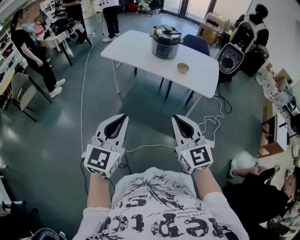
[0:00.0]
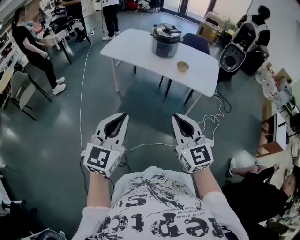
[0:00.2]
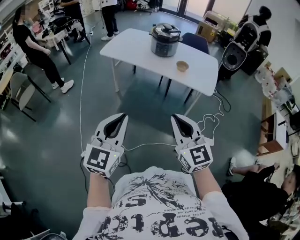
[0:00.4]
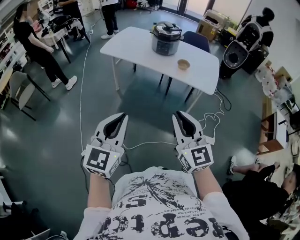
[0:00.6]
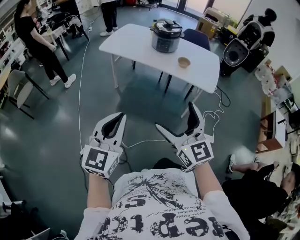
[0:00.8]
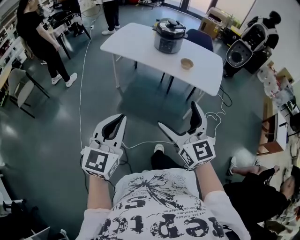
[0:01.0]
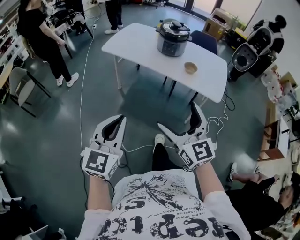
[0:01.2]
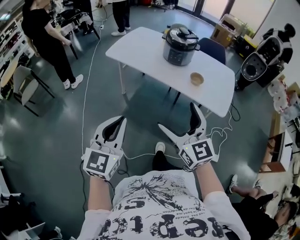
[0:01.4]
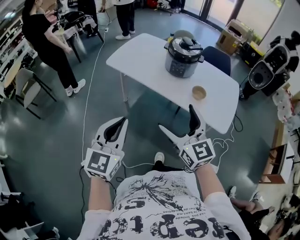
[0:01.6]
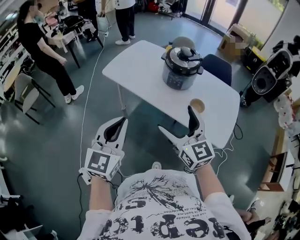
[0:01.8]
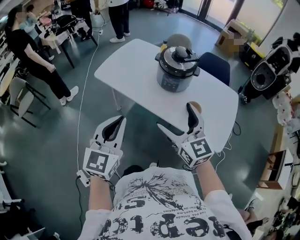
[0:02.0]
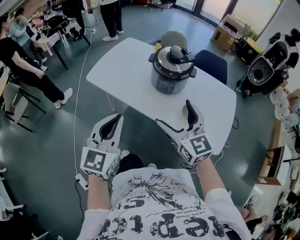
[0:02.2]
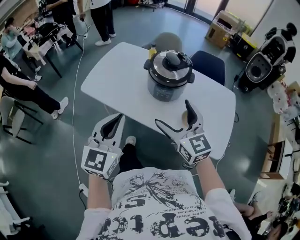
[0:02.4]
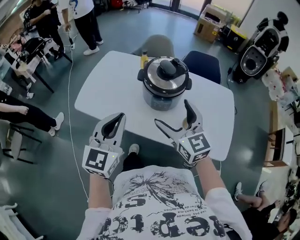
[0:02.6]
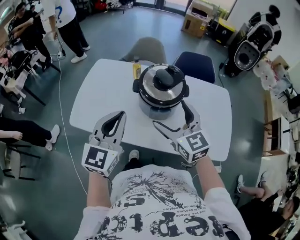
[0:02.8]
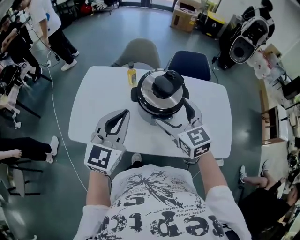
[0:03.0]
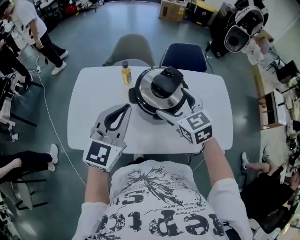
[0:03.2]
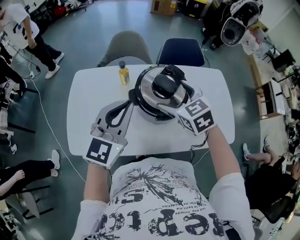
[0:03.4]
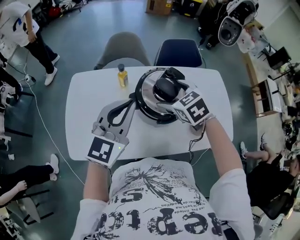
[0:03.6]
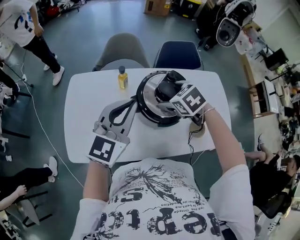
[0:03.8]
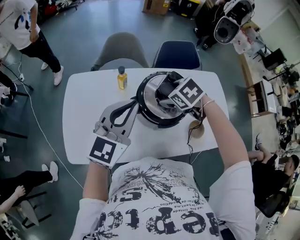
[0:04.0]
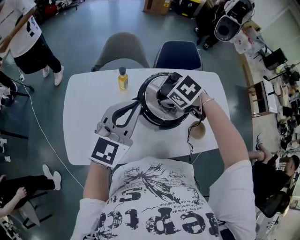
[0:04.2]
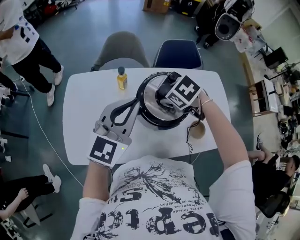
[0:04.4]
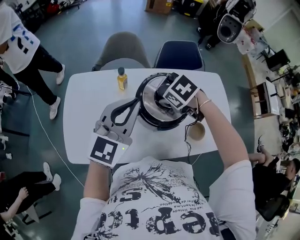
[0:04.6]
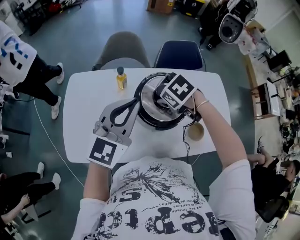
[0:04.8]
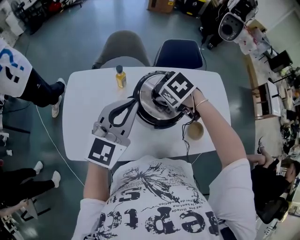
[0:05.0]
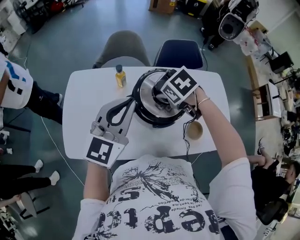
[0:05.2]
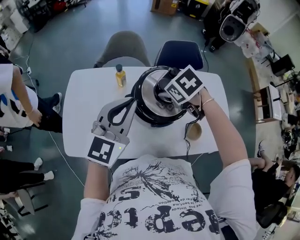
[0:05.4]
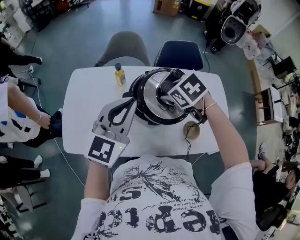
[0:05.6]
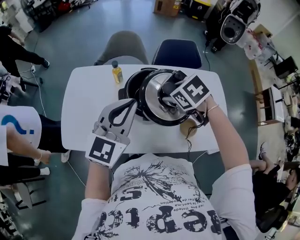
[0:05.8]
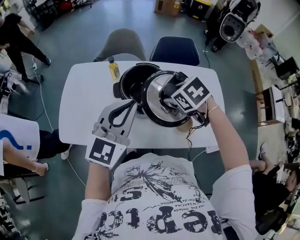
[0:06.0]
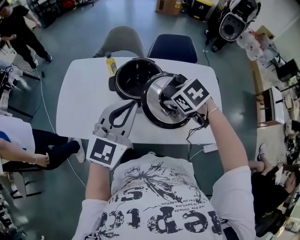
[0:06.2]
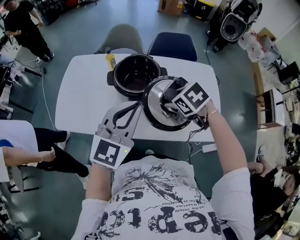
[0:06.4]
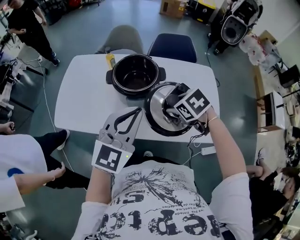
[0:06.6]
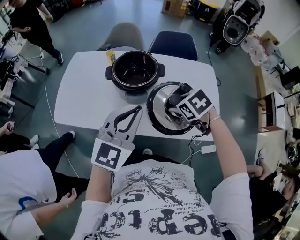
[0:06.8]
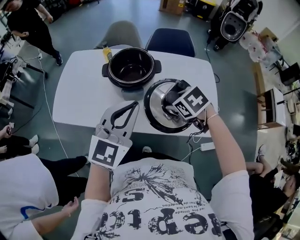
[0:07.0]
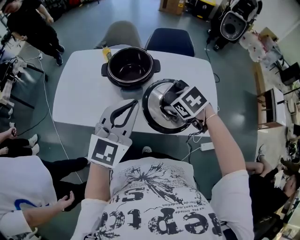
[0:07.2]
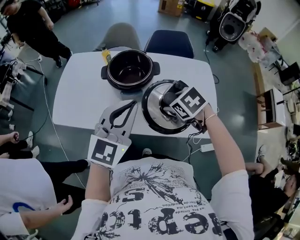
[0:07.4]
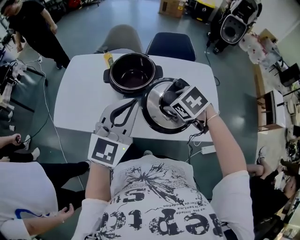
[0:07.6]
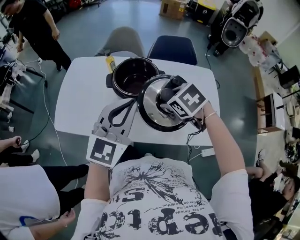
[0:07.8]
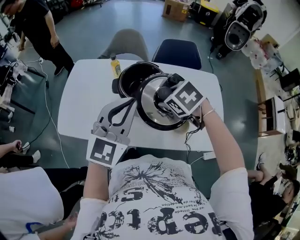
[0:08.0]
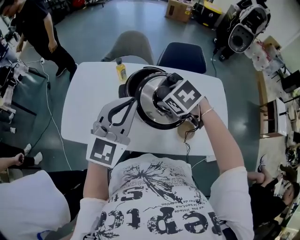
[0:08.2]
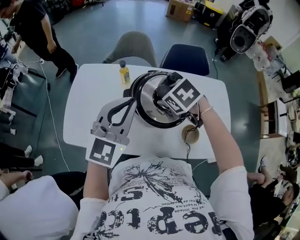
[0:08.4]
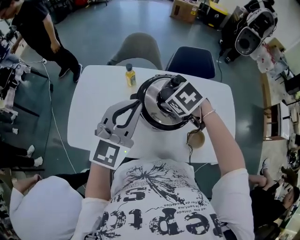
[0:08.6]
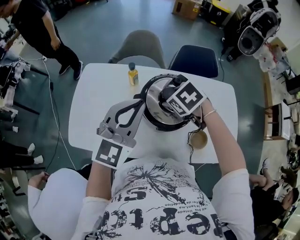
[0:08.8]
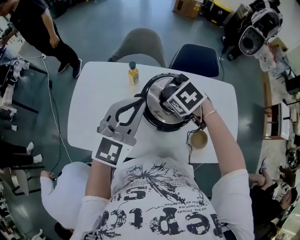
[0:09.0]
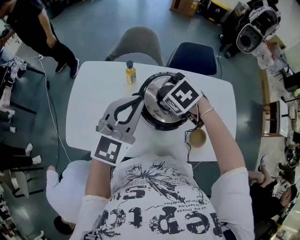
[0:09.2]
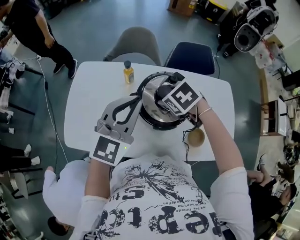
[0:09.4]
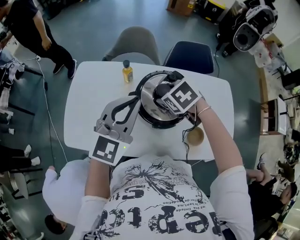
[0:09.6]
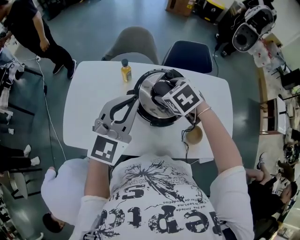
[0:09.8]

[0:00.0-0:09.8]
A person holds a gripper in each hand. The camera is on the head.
0:00.0 to 0:01.4: Both grippers move forward, some 20 cm. The right gripper opens.
0:01.4 to 0:02.8: Both grippers are carried forward, about 60 cm.
0:02.8 to 0:04.2: The left gripper is displaced forward by some 20 cm, and changes its angle by some 30 degrees. The right gripper heads forward and downward, covering roughly 25 cm, and tips its fingers downward by approximately 60 degrees.
0:04.2 to 0:05.6: The right gripper ends up roughly 5 cm from where it was. The left gripper moves approximately 5 cm.
0:05.6 to 0:07.0: Both grippers travel together backward and to the right, some 25 cm.
0:07.0 to 0:08.4: Both grippers travel together forward and to the left, about 25 cm.
0:08.4 to 0:09.8: The right gripper moves roughly 5 cm.

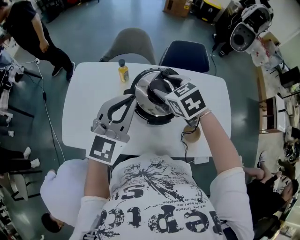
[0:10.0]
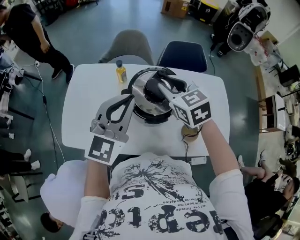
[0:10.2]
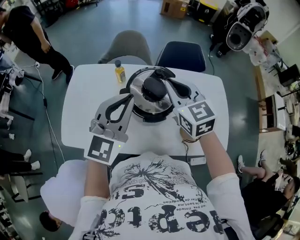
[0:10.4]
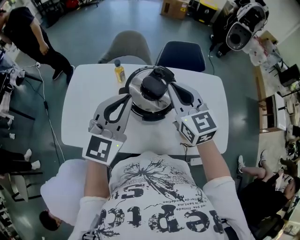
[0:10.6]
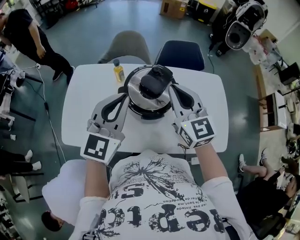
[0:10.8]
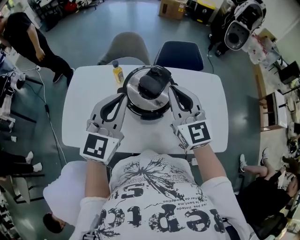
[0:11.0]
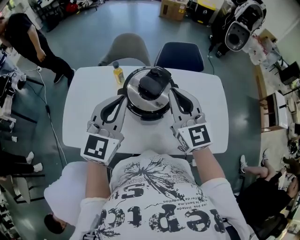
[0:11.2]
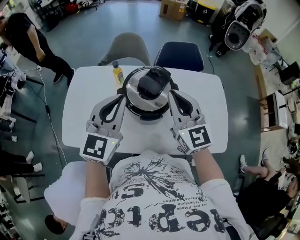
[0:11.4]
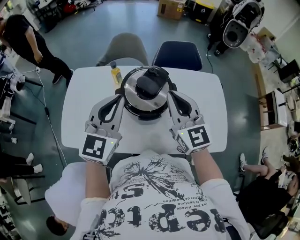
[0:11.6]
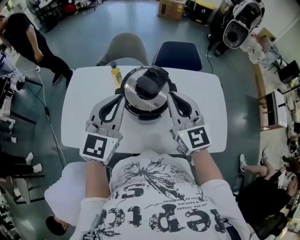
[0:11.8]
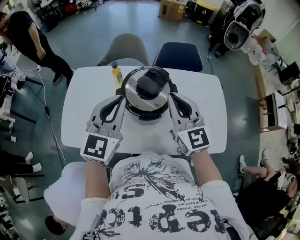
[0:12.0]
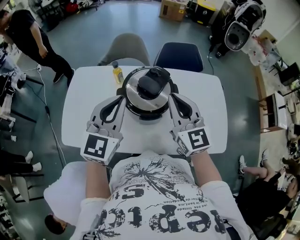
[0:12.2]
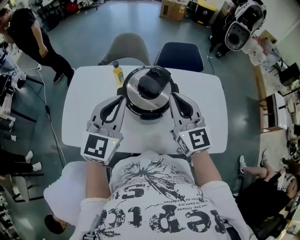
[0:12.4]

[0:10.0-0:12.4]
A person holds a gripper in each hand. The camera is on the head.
0:10.0 to 0:11.2: The right gripper heads upward, backward and to the right, covering about 15 cm, angles its fingers upward, by some 50 degrees, and closes.
0:11.2 to 0:12.4: There are only small adjustments of the grippers.

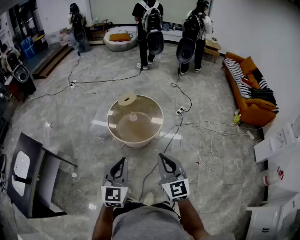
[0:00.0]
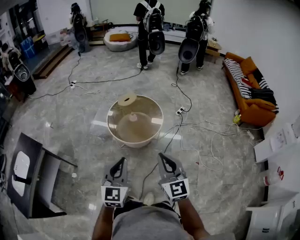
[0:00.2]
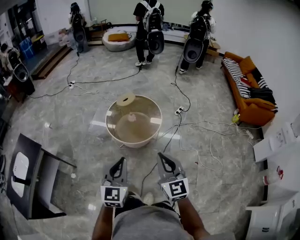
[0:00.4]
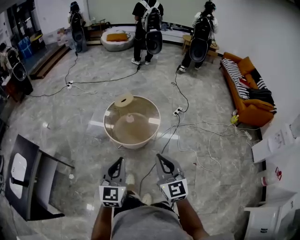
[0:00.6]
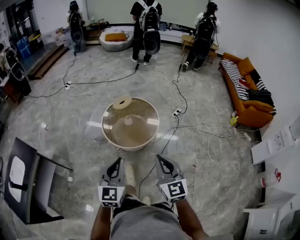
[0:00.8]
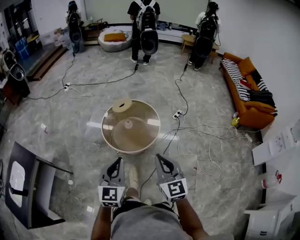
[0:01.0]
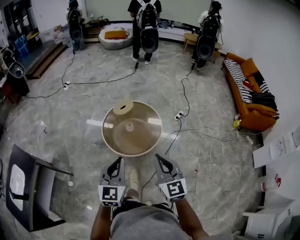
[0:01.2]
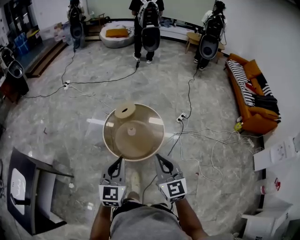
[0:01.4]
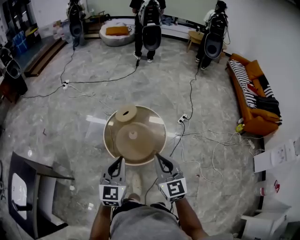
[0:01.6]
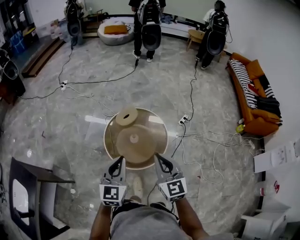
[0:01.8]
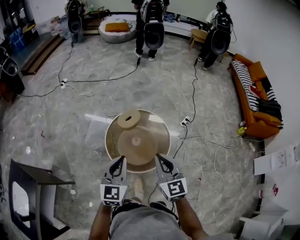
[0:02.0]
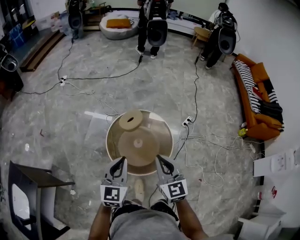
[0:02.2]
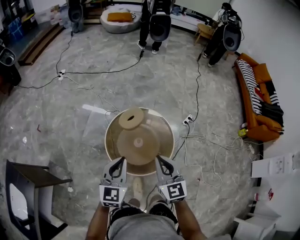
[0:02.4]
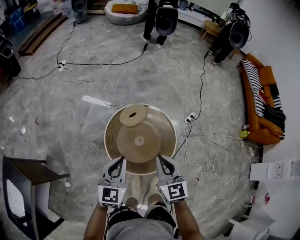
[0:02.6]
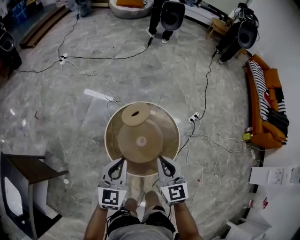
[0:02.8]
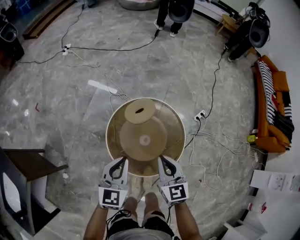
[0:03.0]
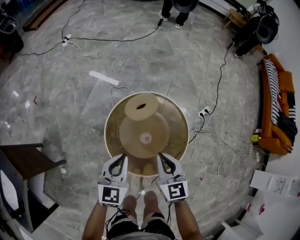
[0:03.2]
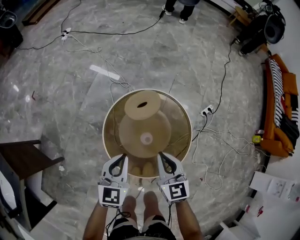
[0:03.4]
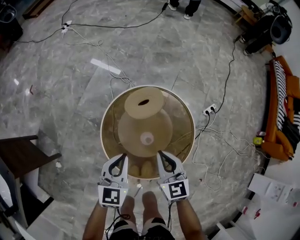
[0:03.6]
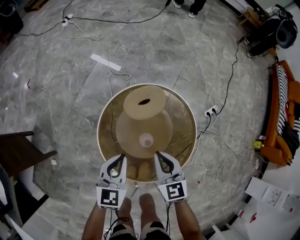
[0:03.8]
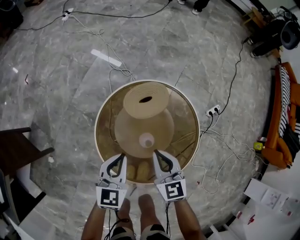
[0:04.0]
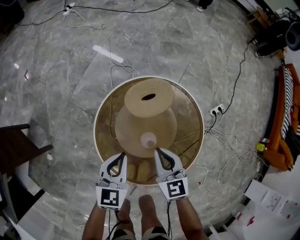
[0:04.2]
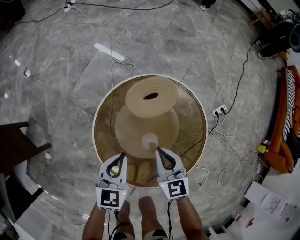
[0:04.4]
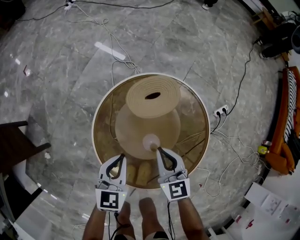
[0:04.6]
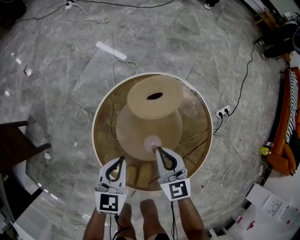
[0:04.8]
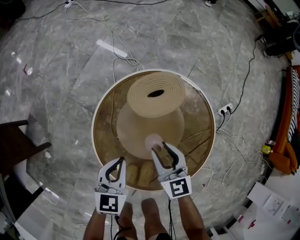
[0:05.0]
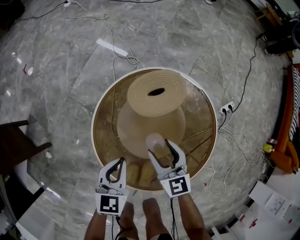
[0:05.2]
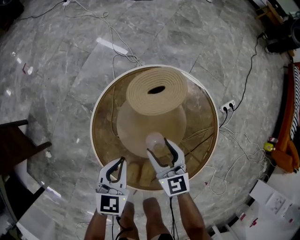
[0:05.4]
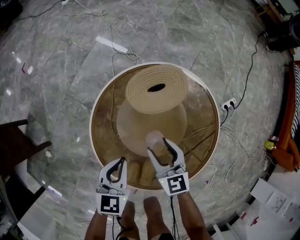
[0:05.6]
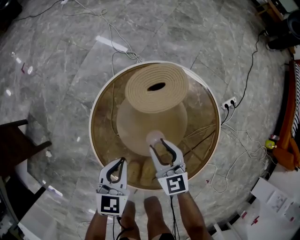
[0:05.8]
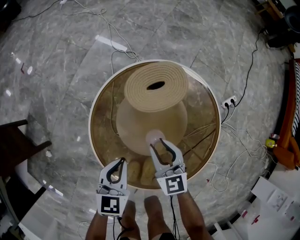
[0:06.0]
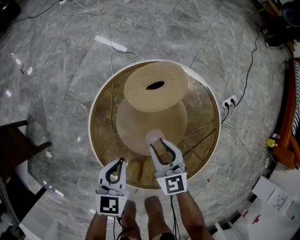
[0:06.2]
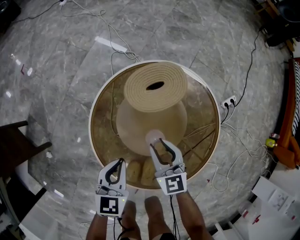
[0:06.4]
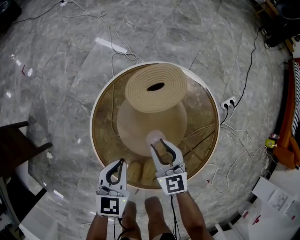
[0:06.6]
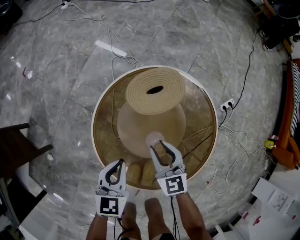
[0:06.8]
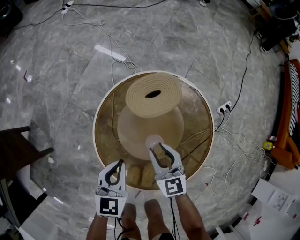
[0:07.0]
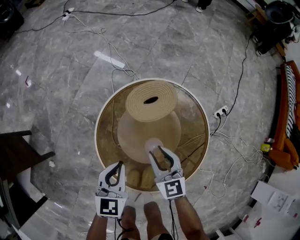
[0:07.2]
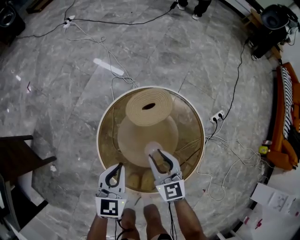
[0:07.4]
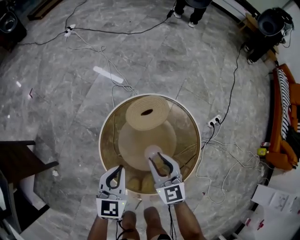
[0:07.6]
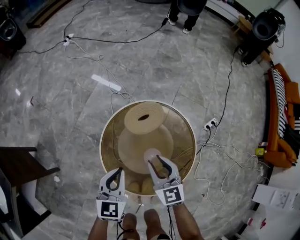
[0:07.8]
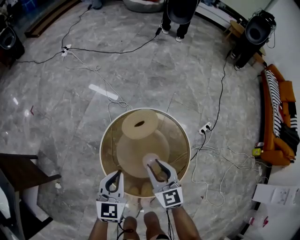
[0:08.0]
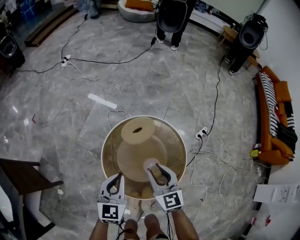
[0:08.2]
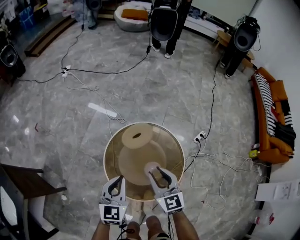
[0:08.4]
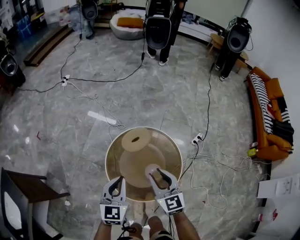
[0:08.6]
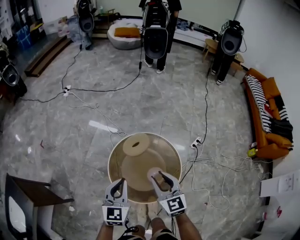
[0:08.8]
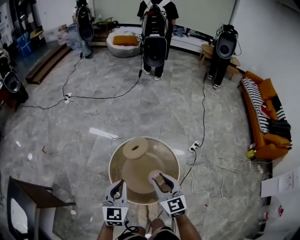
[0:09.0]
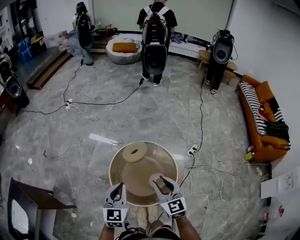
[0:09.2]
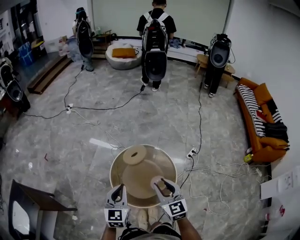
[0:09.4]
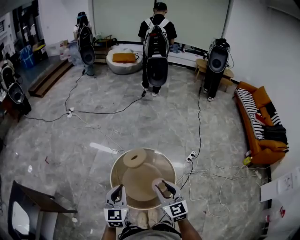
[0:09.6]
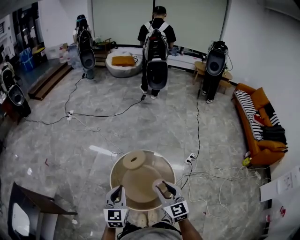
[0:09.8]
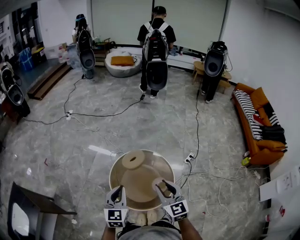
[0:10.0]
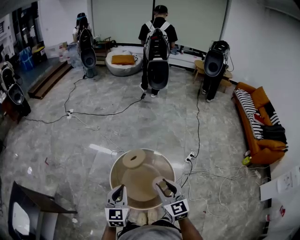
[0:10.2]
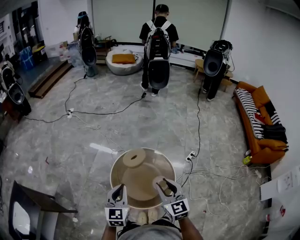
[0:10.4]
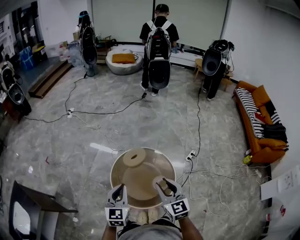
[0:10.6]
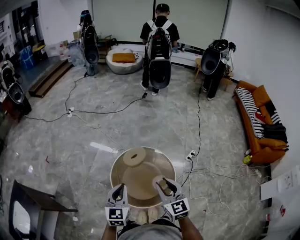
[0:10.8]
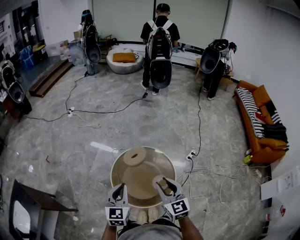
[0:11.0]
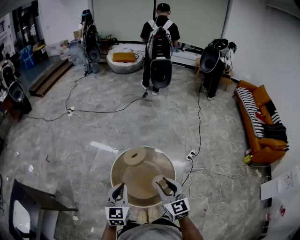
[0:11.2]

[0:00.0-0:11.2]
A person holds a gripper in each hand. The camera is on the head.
0:00.0 to 0:01.6: The grippers both shift forward by roughly 30 cm.
0:01.6 to 0:03.2: The grippers both shift forward and downward by roughly 40 cm.
0:03.2 to 0:04.8: Both grippers travel together downward, approximately 25 cm.
0:04.8 to 0:06.4: The right gripper is displaced downward by about 5 cm, and opens its fingers.
0:06.4 to 0:08.0: Both grippers travel together upward, roughly 25 cm.
0:08.0 to 0:09.6: The grippers both shift upward and backward by some 30 cm.
0:09.6 to 0:11.2: The grippers move only a little.
